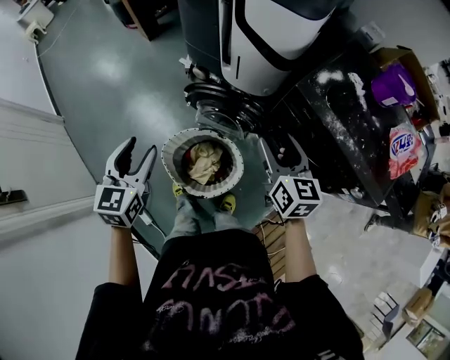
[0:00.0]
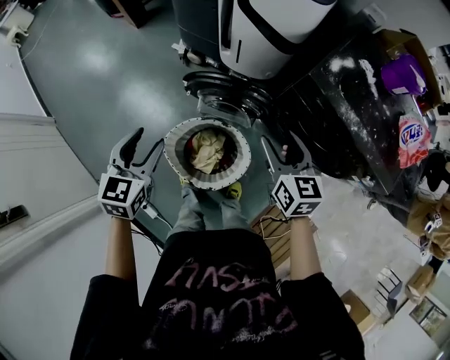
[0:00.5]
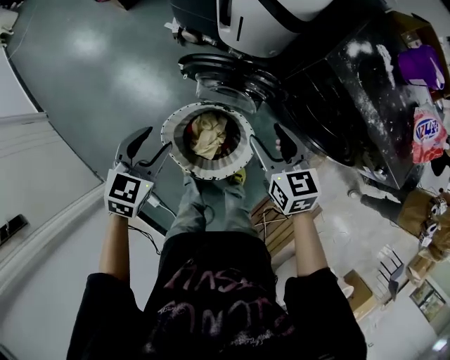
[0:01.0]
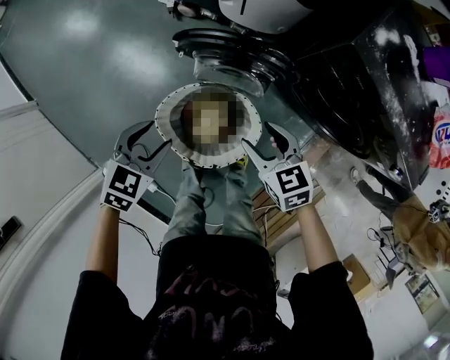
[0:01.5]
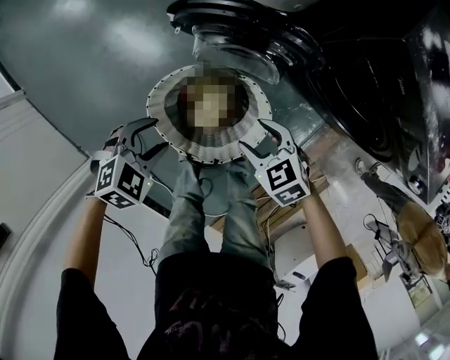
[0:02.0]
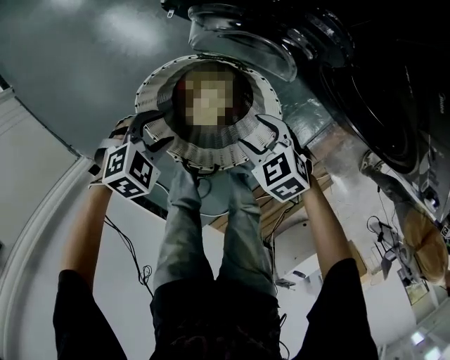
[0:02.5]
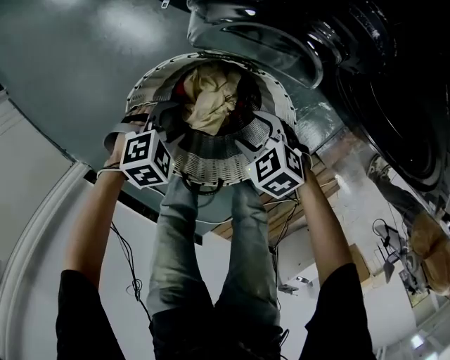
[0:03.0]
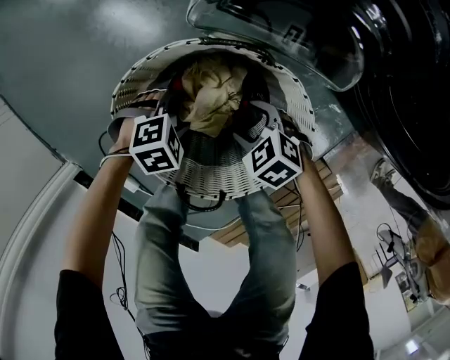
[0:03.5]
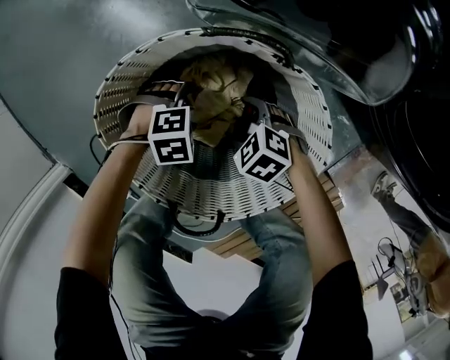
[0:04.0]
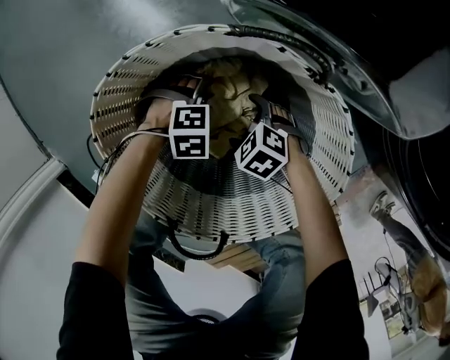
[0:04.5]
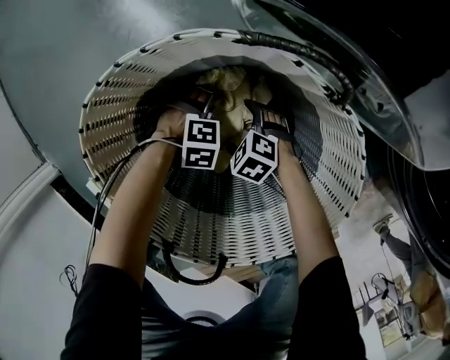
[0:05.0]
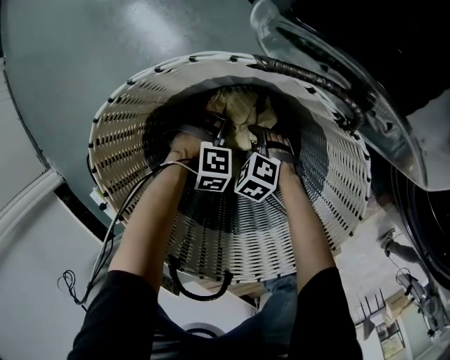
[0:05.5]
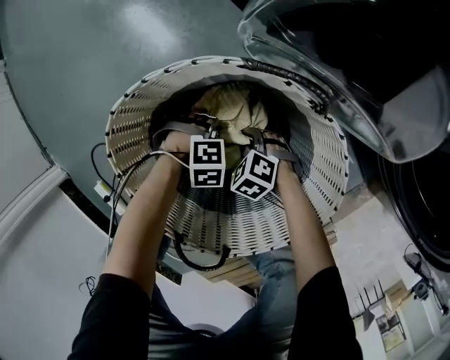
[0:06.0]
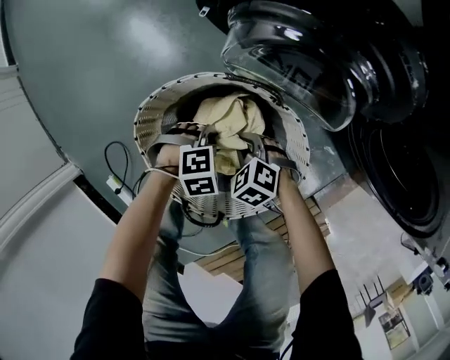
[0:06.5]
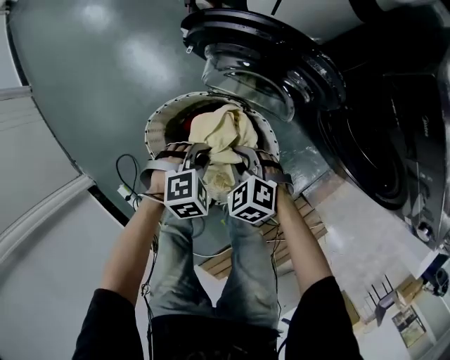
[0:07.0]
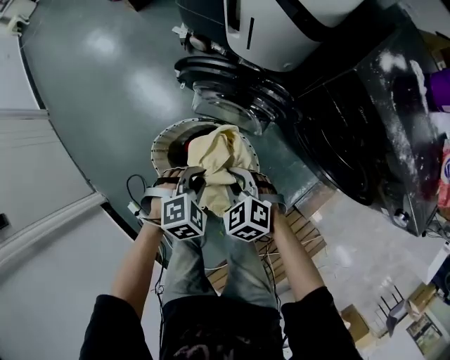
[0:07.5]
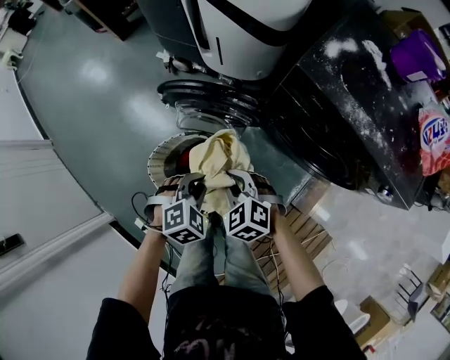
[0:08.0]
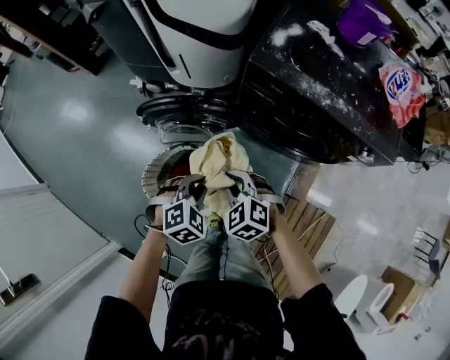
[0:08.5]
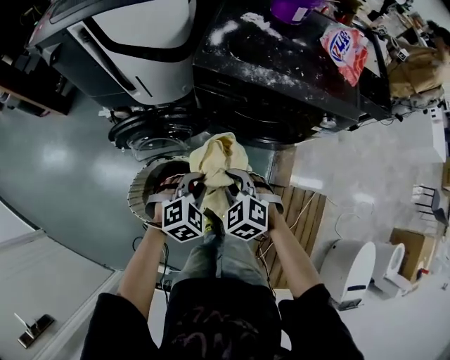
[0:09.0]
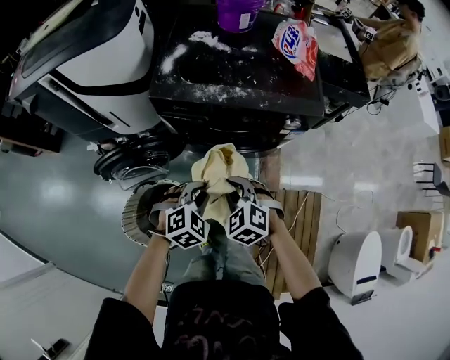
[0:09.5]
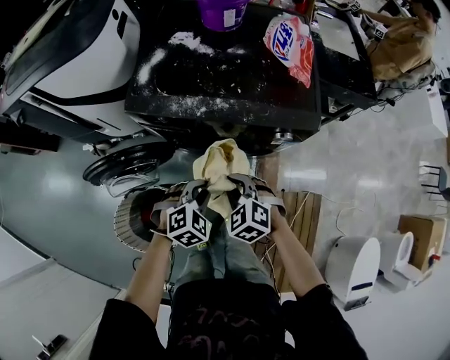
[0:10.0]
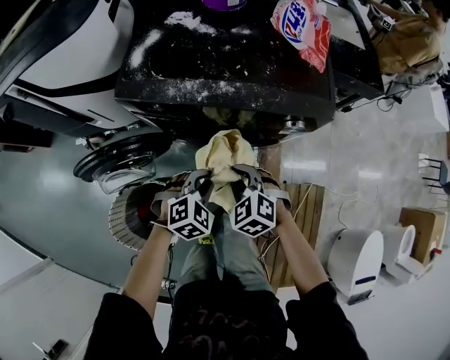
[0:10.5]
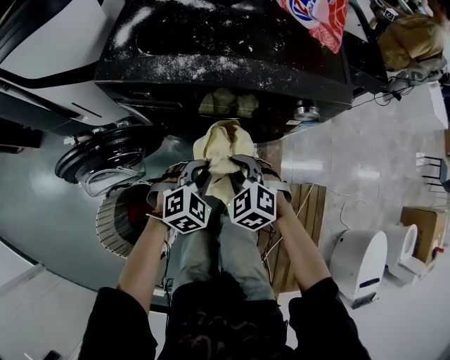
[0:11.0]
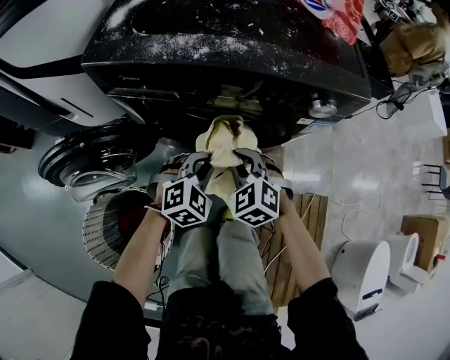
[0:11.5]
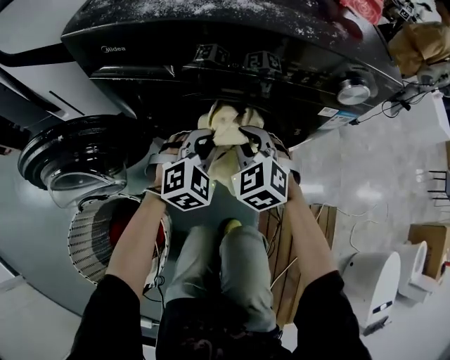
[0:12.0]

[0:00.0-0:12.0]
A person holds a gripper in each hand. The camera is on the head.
0.0 to 2.0 s: Both grippers travel together downward, roughly 35 cm. The left gripper tips its fingers downward by about 40 degrees. The right gripper tilts its fingers about 40 degrees downward.
2.0 to 4.0 s: The grippers both shift downward by about 40 cm. The right gripper turns by some 30 degrees, while the left gripper swivels some 20 degrees.
4.0 to 6.0 s: The grippers both shift downward by about 10 cm. The right gripper closes. The left gripper closes its fingers.
6.0 to 8.0 s: The grippers both shift upward by roughly 50 cm. The right gripper swivels about 30 degrees. The left gripper swivels roughly 20 degrees.
8.0 to 10.0 s: The left gripper shifts by about 30 cm, and swivels approximately 30 degrees, while the right gripper changes place by about 30 cm, and swivels about 30 degrees.
10.0 to 12.0 s: The grippers both shift downward and forward by roughly 25 cm. The left gripper rotates some 20 degrees.

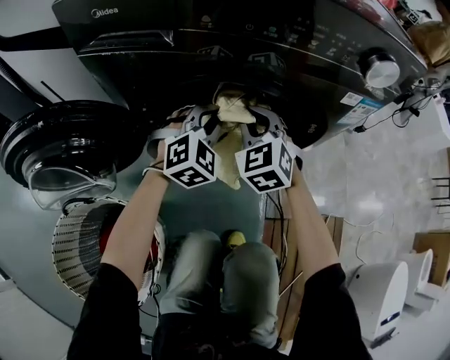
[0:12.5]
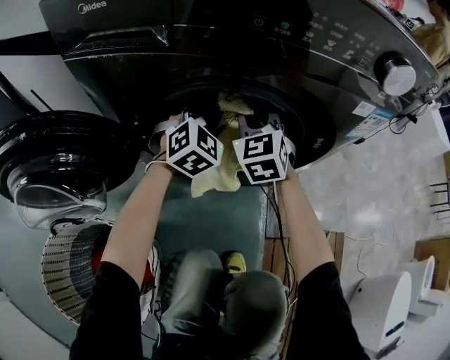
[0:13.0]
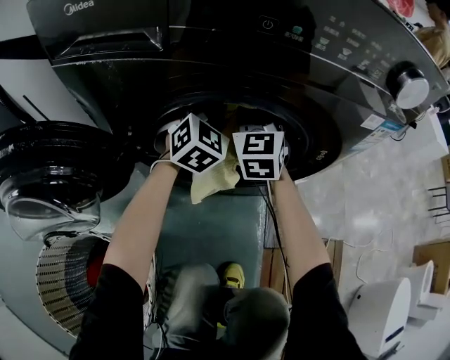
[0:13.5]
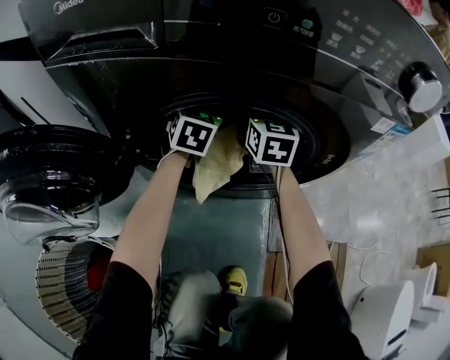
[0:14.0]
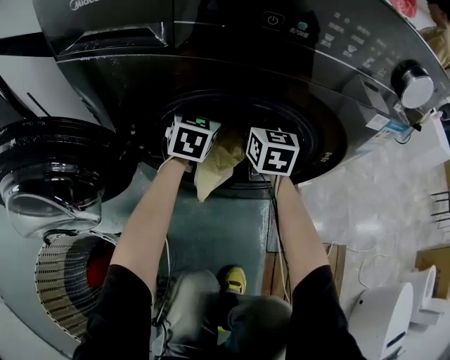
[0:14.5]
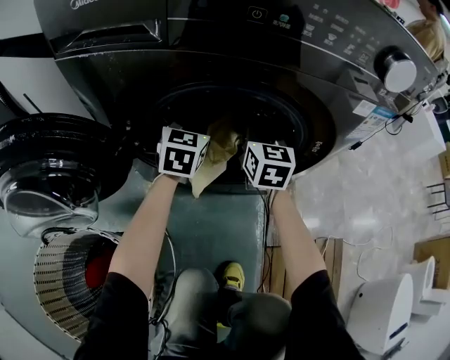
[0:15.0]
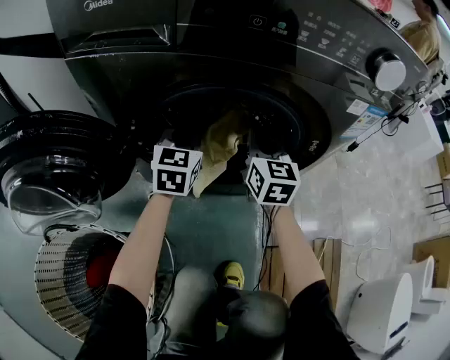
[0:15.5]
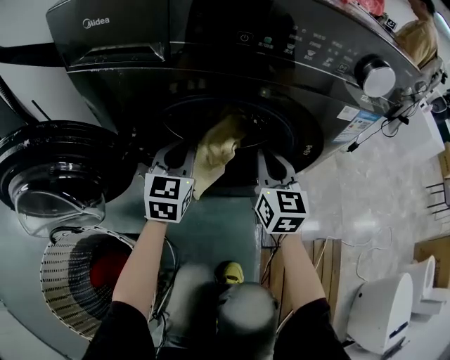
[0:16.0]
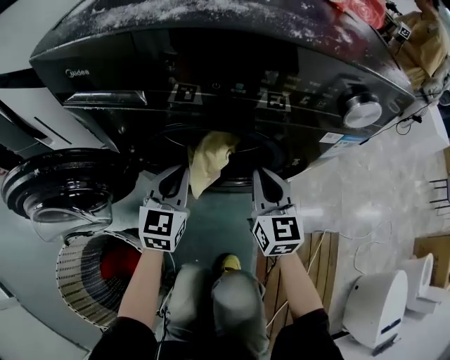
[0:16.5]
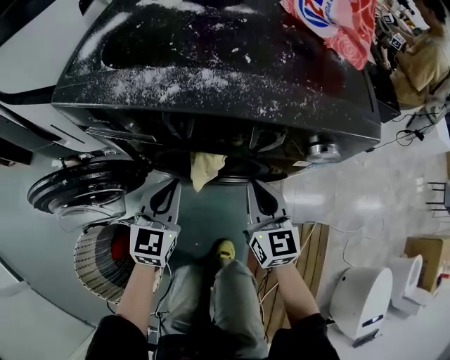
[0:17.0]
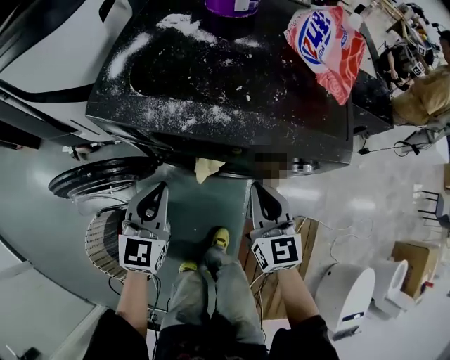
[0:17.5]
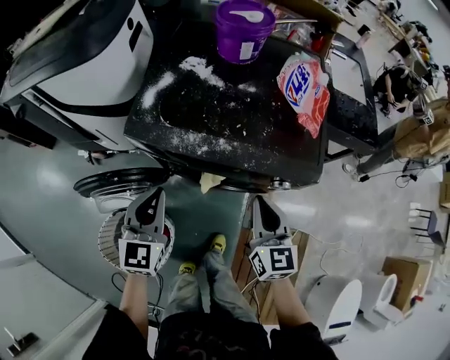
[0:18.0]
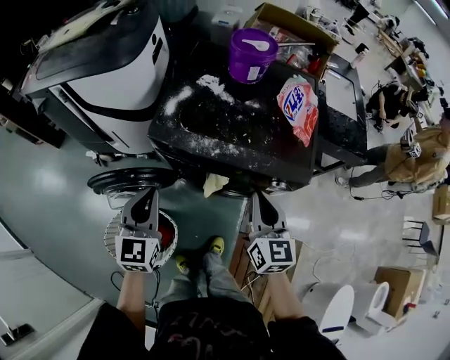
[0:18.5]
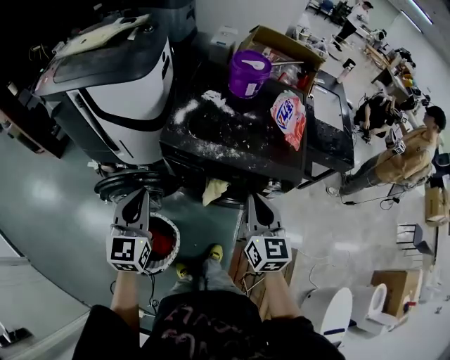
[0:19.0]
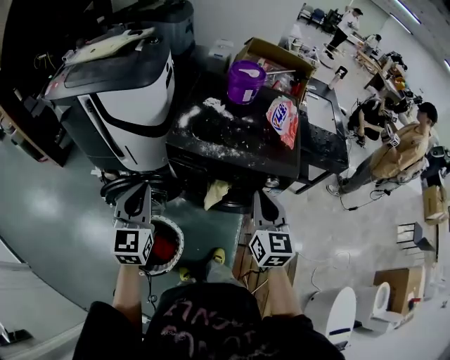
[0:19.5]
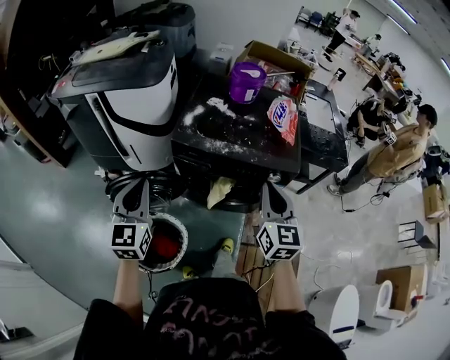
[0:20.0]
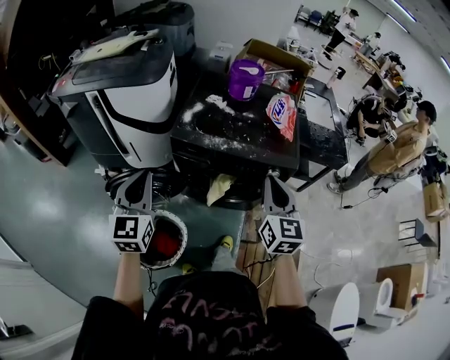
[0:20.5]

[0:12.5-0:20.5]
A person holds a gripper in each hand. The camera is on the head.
12.5 to 14.5 s: The grippers both shift forward by roughly 15 cm. The right gripper swivels approximately 40 degrees. Meanwhile the left gripper twists roughly 40 degrees counterclockwise, seen from behind.
14.5 to 16.5 s: The grippers both shift backward by about 15 cm. The right gripper closes.
16.5 to 18.5 s: The grippers both shift upward by approximately 40 cm.
18.5 to 20.5 s: The right gripper heads upward and backward, covering about 15 cm. The left gripper shifts some 15 cm upward, backward and to the left.

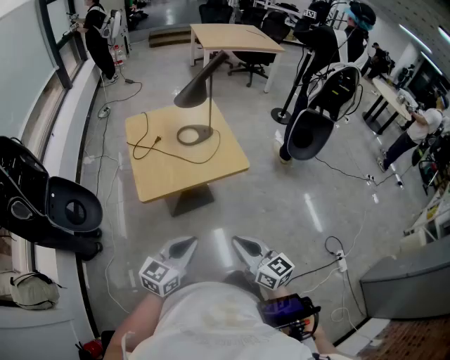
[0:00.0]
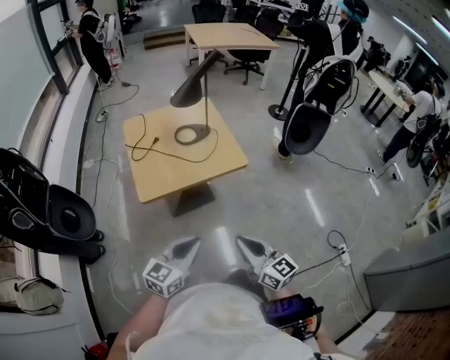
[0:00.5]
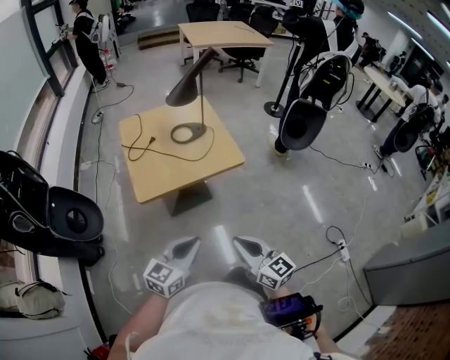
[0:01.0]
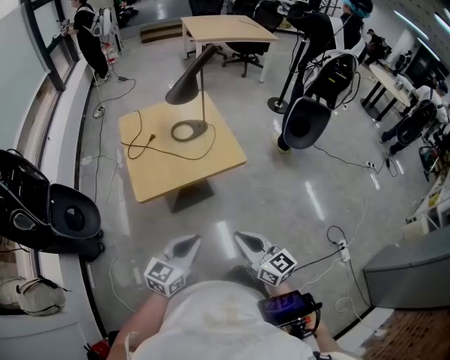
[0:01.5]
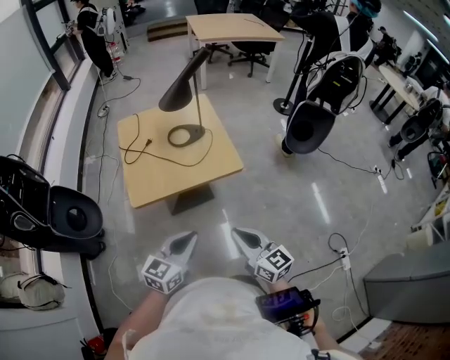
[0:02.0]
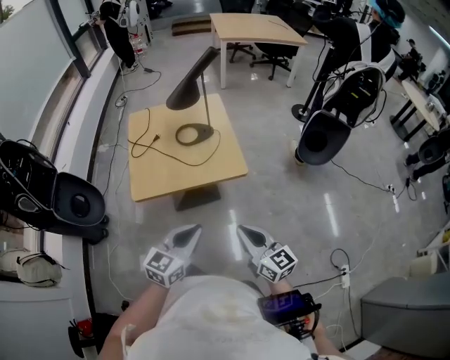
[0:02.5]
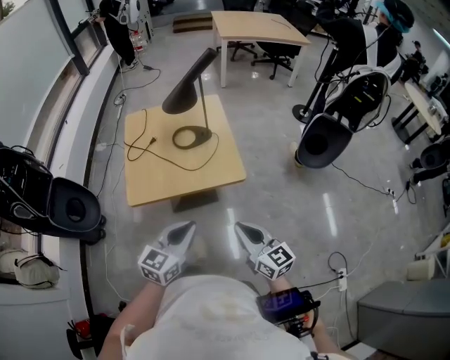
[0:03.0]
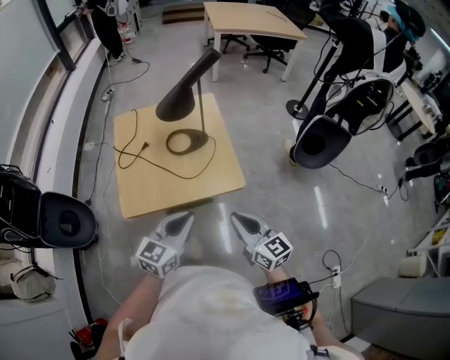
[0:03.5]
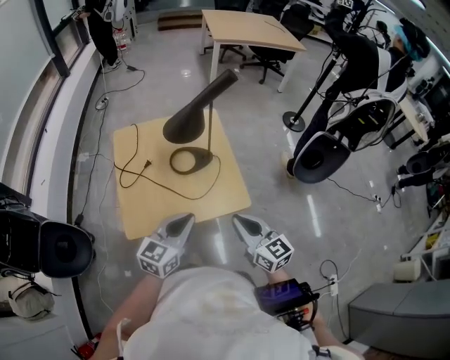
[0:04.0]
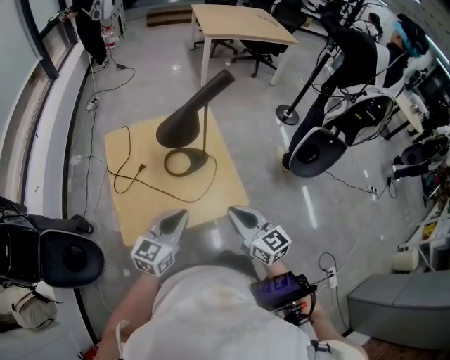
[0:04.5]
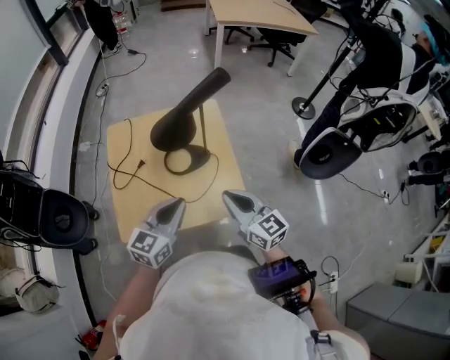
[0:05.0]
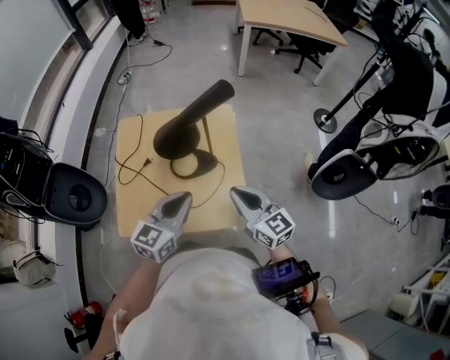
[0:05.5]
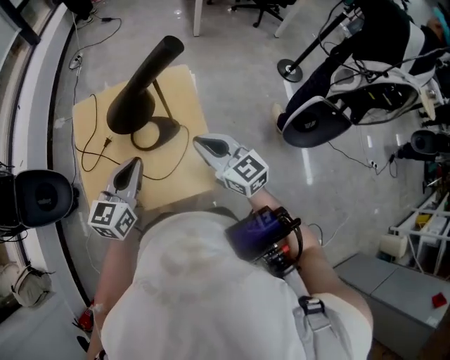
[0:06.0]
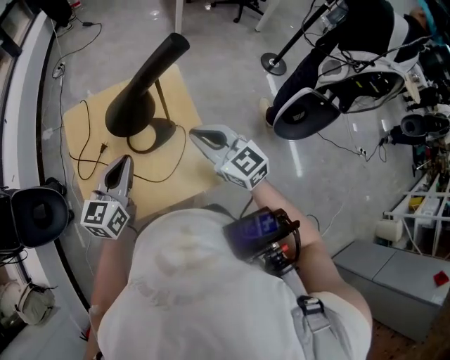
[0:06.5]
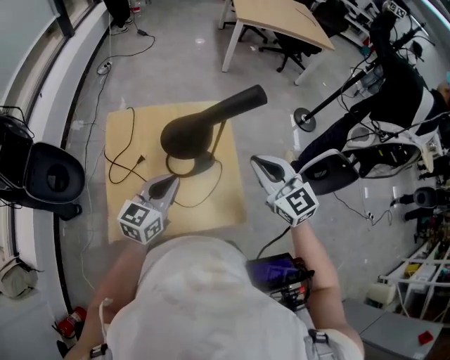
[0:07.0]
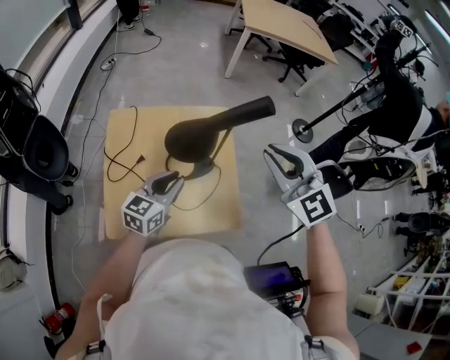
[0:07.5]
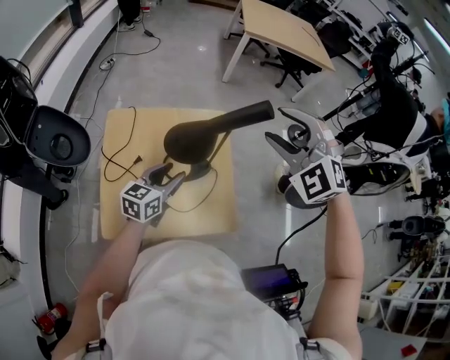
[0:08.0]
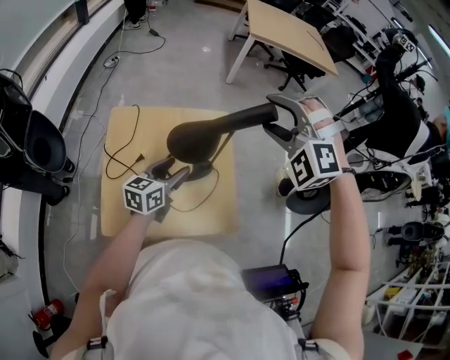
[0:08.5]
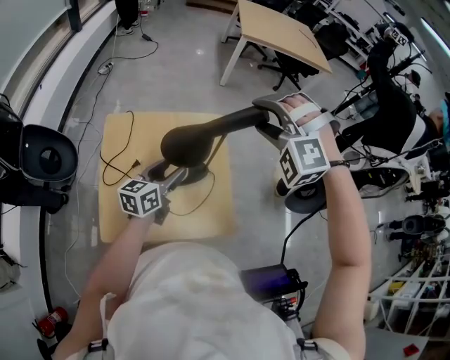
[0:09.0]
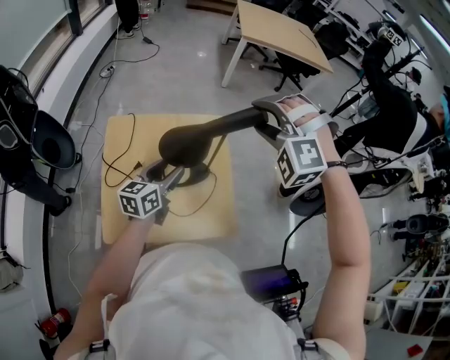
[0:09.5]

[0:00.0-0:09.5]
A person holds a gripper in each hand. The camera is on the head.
0.0 to 2.0 s: The two grippers go approximately 10 cm to the right and forward.
2.0 to 4.0 s: The two grippers go about 25 cm forward.
4.0 to 5.5 s: The grippers both shift forward by approximately 15 cm.
5.5 to 7.5 s: The right gripper heads upward and forward, covering about 20 cm, and changes its angle by some 40 degrees. Meanwhile the left gripper heads forward and to the left, covering roughly 10 cm.
7.5 to 9.5 s: The right gripper is displaced forward by some 10 cm, rotates around the line of its fingers by some 60 degrees, counterclockwise from behind, and opens. The left gripper moves roughly 5 cm, and opens.
